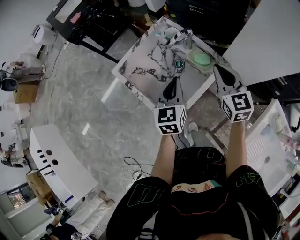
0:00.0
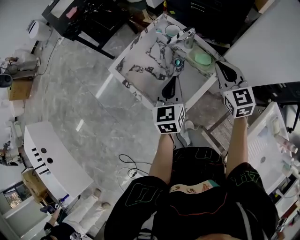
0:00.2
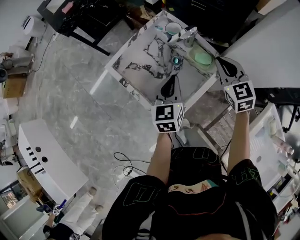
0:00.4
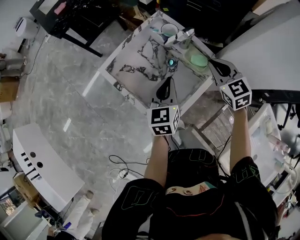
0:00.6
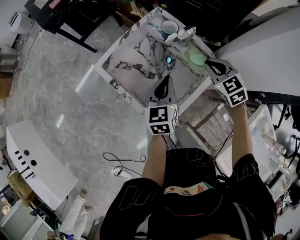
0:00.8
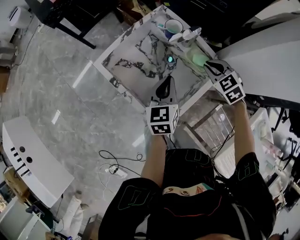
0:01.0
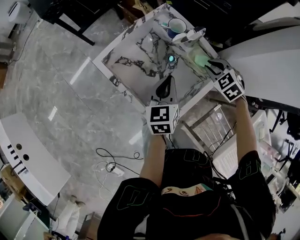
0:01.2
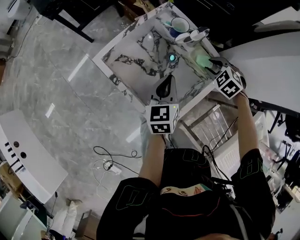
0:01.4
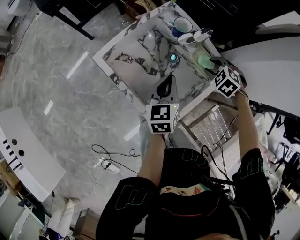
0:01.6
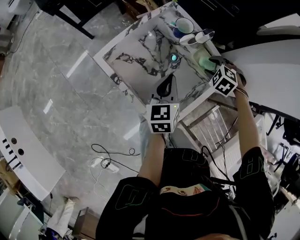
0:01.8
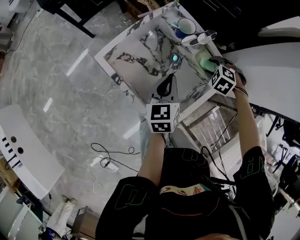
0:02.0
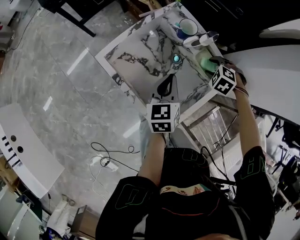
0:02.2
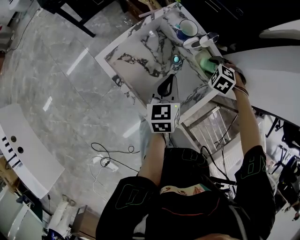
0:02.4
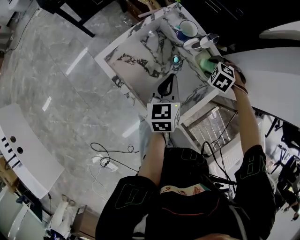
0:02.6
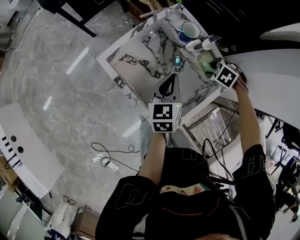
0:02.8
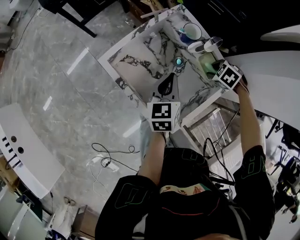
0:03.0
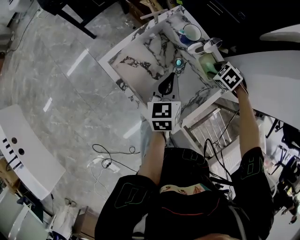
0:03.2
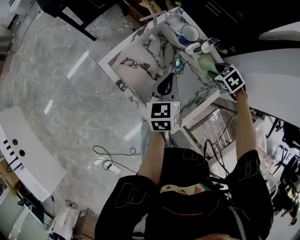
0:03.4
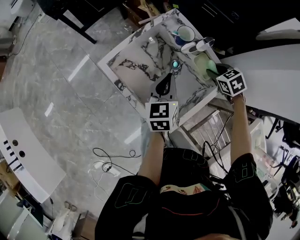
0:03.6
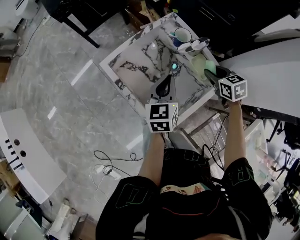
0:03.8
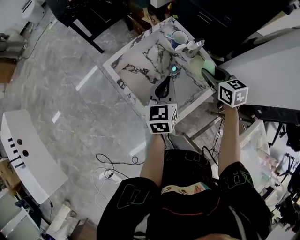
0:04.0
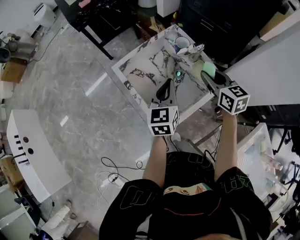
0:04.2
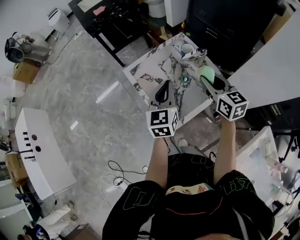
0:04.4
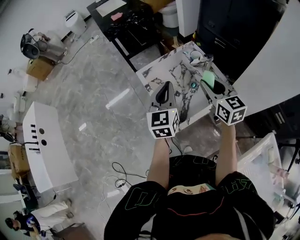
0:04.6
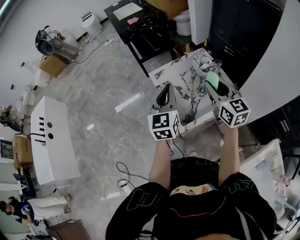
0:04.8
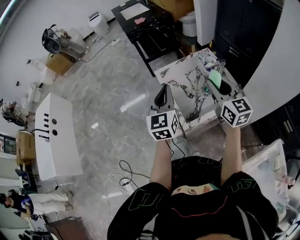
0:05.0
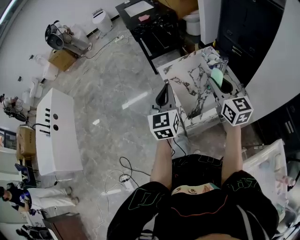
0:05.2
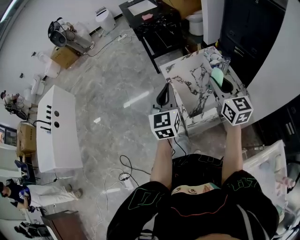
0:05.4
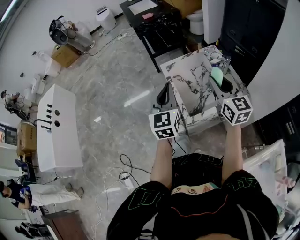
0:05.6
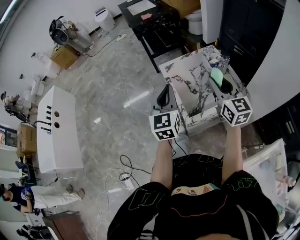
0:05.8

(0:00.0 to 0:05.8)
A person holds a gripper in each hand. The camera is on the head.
0:00.0 - 0:01.4: The right gripper is displaced downward and forward by about 20 cm, angles its fingers downward, by approximately 50 degrees, and opens its fingers. Meanwhile the left gripper is displaced downward by approximately 10 cm.
0:01.4 - 0:02.8: The right gripper shifts about 5 cm downward, and rotates about 20 degrees.
0:02.8 - 0:04.4: The left gripper moves upward, about 15 cm, and rotates approximately 20 degrees, while the right gripper heads upward, covering approximately 25 cm, and tilts its fingers some 70 degrees upward.
0:04.4 - 0:05.8: The left gripper heads to the left, backward and upward, covering about 20 cm, and changes its angle by some 20 degrees, while the right gripper shifts roughly 15 cm to the left, upward and backward.

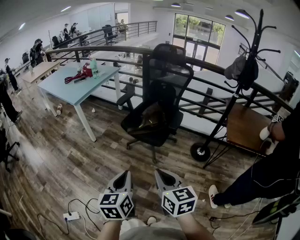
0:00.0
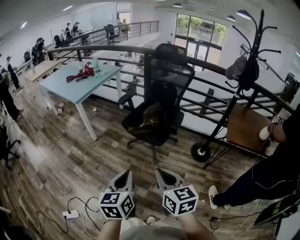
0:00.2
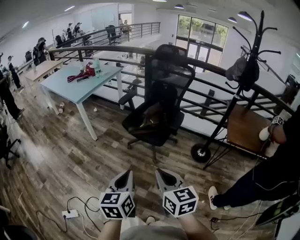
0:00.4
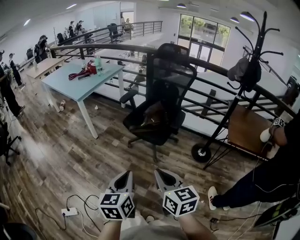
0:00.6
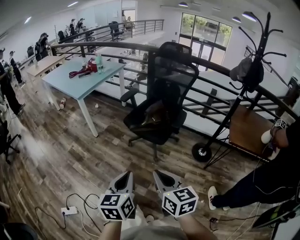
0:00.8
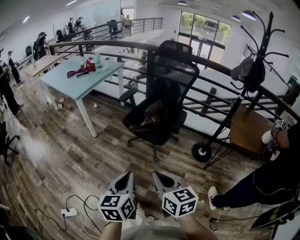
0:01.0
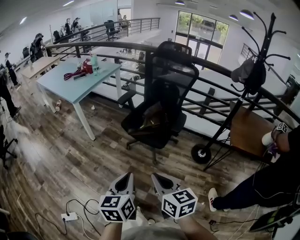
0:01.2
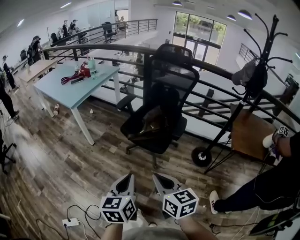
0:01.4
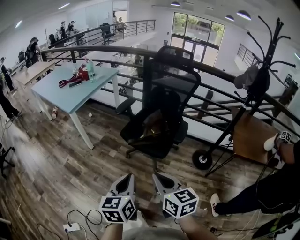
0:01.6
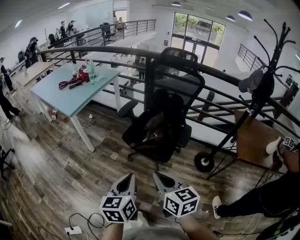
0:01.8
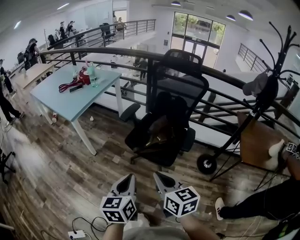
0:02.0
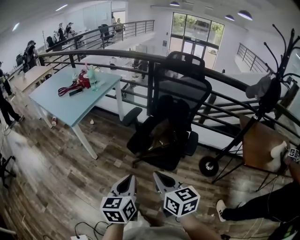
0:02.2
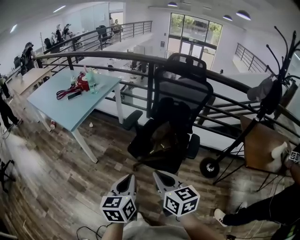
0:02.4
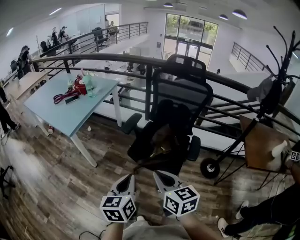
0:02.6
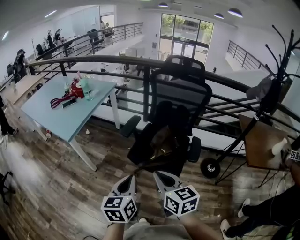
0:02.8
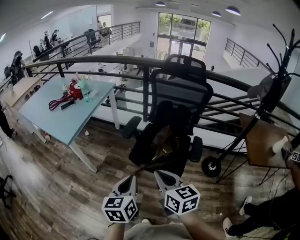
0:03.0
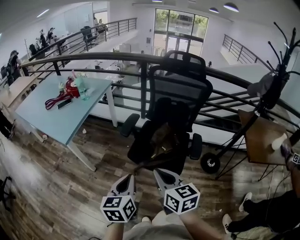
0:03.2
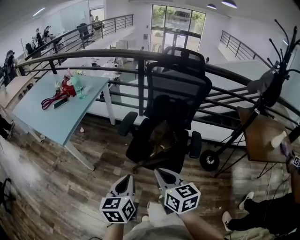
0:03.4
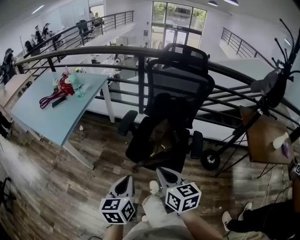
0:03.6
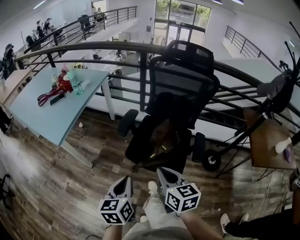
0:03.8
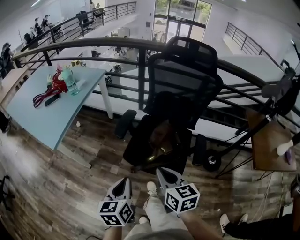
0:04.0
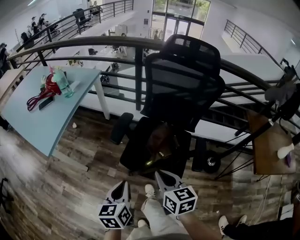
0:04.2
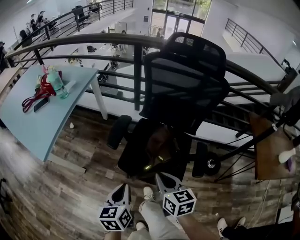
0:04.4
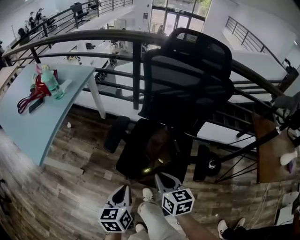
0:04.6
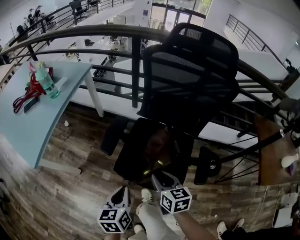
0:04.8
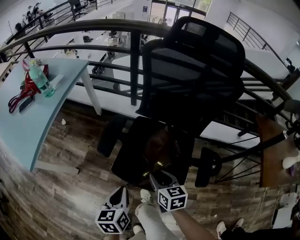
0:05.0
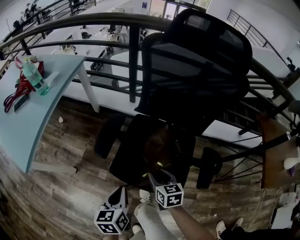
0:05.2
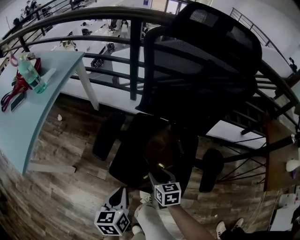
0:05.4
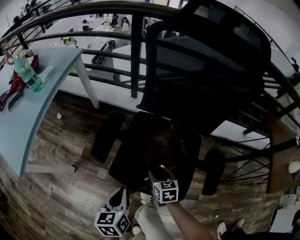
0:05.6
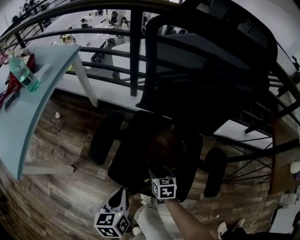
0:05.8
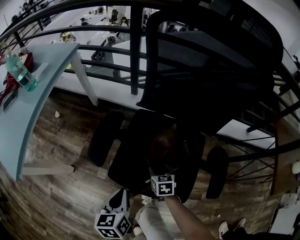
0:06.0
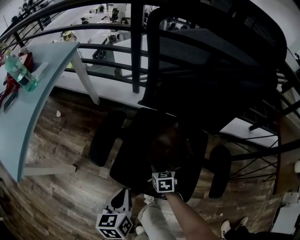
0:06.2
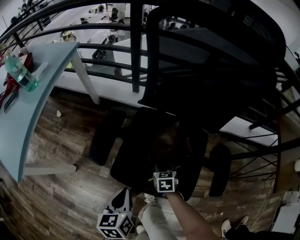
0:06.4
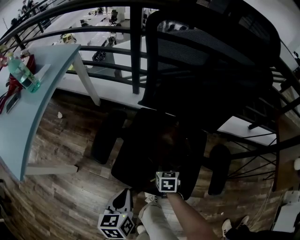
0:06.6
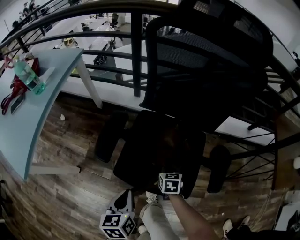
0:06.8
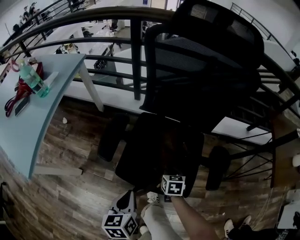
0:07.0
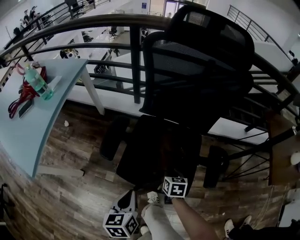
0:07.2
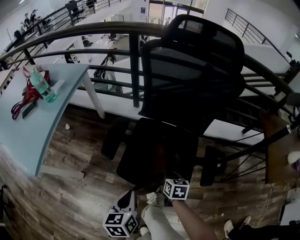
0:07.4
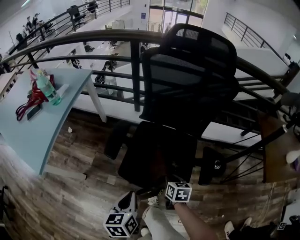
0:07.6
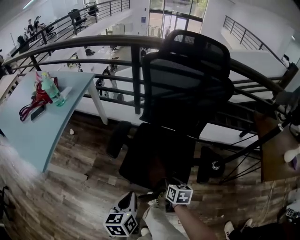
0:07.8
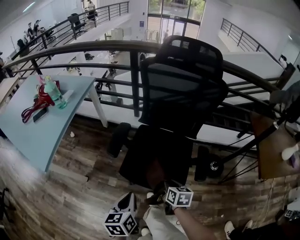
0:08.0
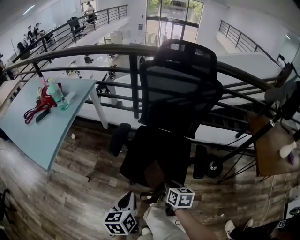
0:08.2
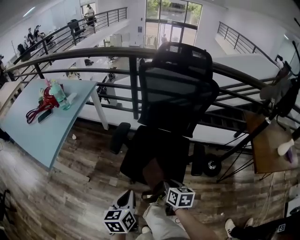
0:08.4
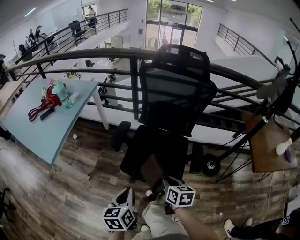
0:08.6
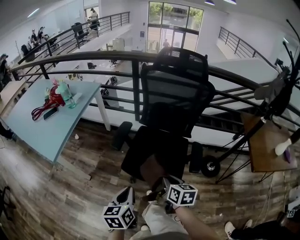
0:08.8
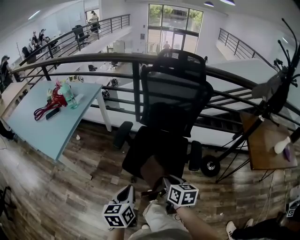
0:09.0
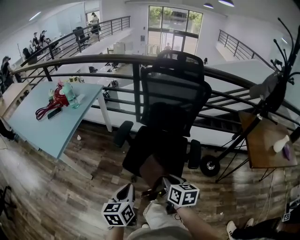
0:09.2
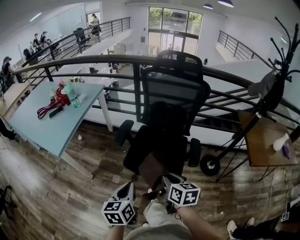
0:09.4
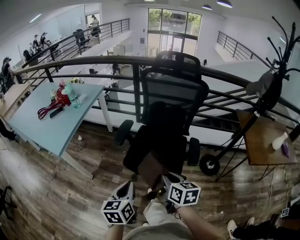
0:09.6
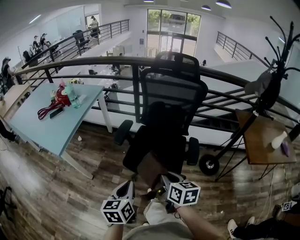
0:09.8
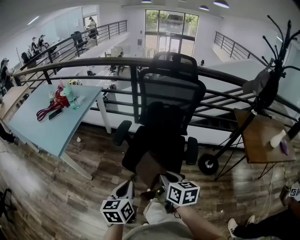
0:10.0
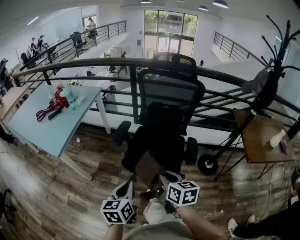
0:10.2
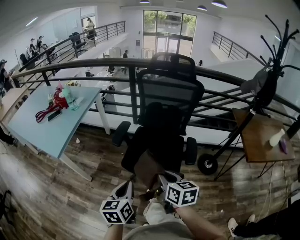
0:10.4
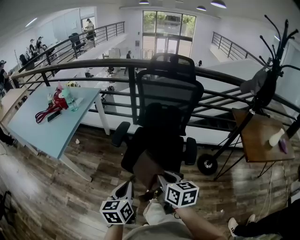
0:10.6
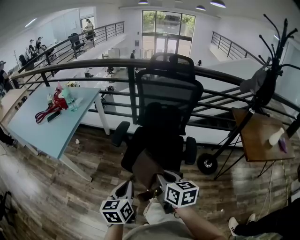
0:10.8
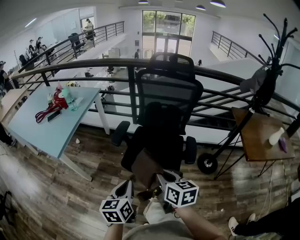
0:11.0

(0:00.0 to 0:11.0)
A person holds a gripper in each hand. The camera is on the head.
0:00.0 - 0:01.6: Both grippers move forward, roughly 15 cm.
0:01.6 - 0:03.2: Both grippers travel together forward and to the left, approximately 25 cm.
0:03.2 - 0:04.8: The two grippers go about 30 cm forward and downward.
0:04.8 - 0:06.2: The right gripper moves downward and forward, about 30 cm, turns by approximately 20 degrees, and opens up, while the left gripper shifts some 15 cm downward and forward.
0:06.2 - 0:07.8: The two grippers go roughly 20 cm upward and backward. The right gripper rotates roughly 20 degrees, and closes its fingers.
0:07.8 - 0:09.4: The right gripper moves upward and backward, approximately 25 cm, while the left gripper shifts about 15 cm backward and upward.
0:09.4 - 0:11.0: The right gripper is displaced upward by about 5 cm.

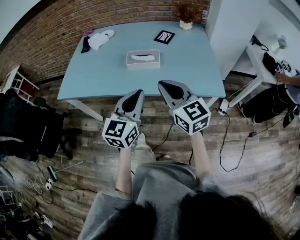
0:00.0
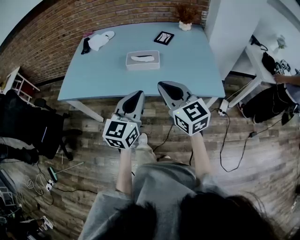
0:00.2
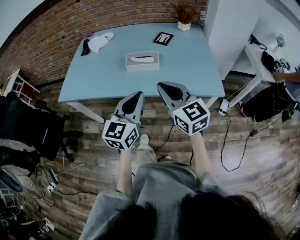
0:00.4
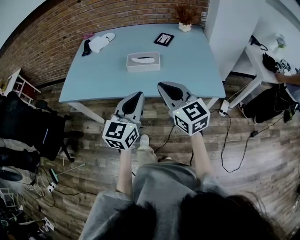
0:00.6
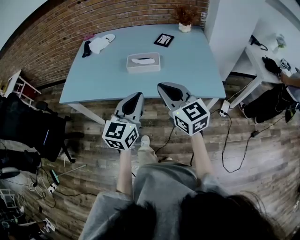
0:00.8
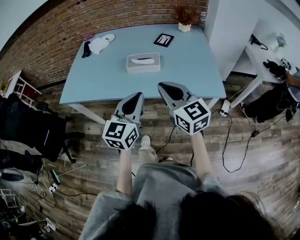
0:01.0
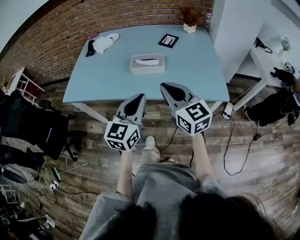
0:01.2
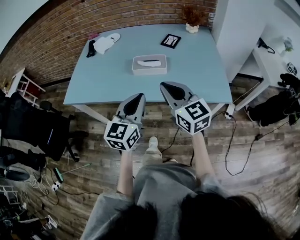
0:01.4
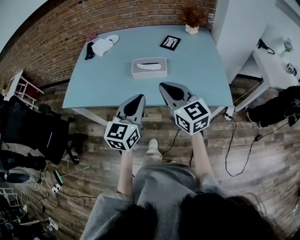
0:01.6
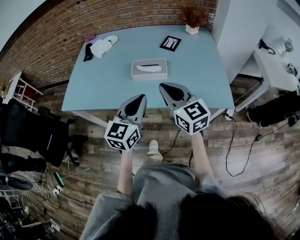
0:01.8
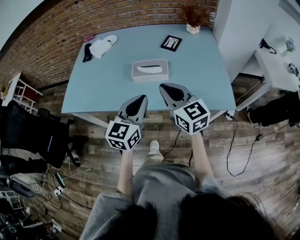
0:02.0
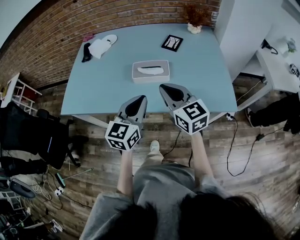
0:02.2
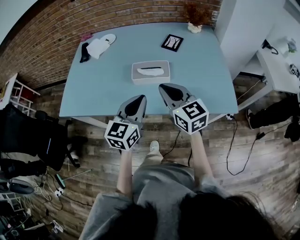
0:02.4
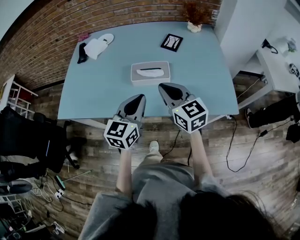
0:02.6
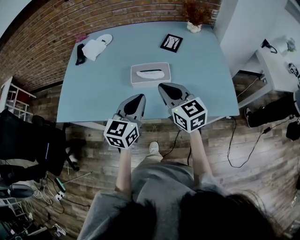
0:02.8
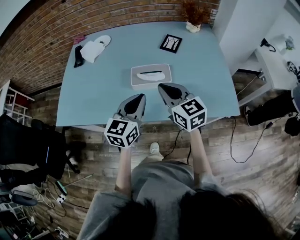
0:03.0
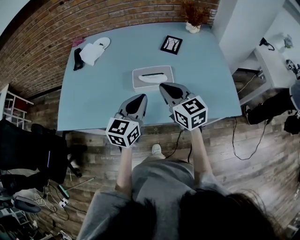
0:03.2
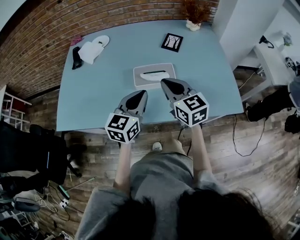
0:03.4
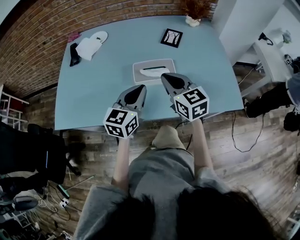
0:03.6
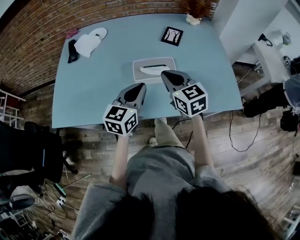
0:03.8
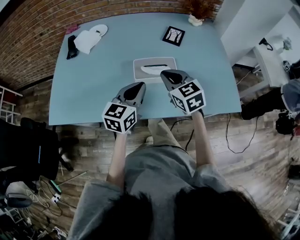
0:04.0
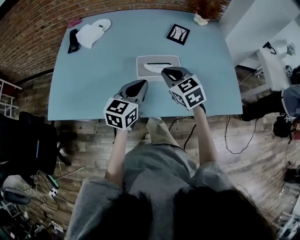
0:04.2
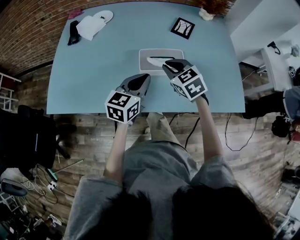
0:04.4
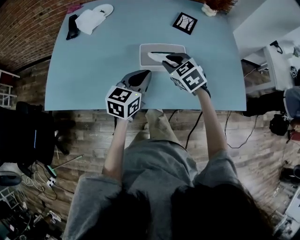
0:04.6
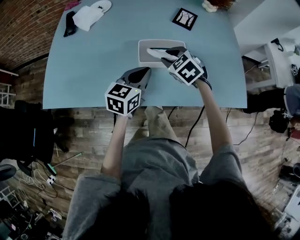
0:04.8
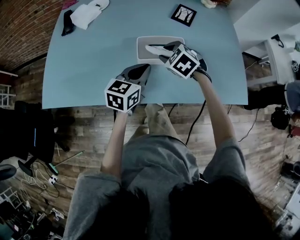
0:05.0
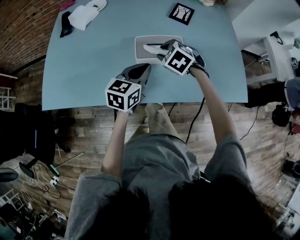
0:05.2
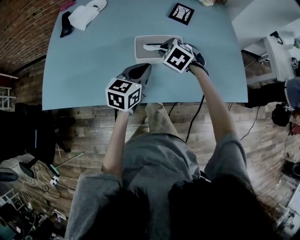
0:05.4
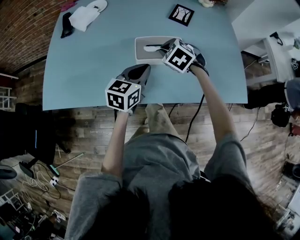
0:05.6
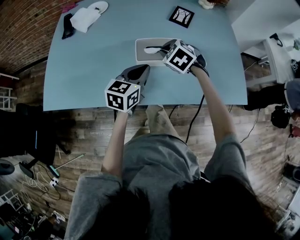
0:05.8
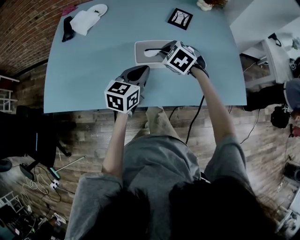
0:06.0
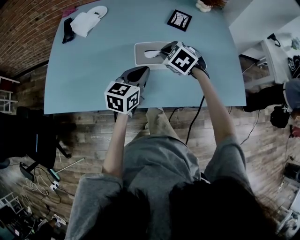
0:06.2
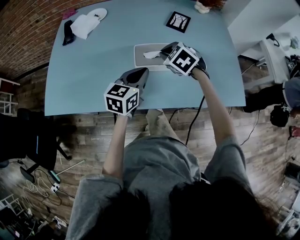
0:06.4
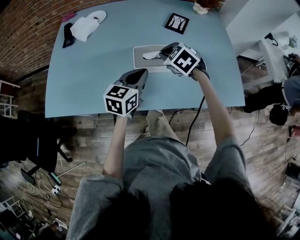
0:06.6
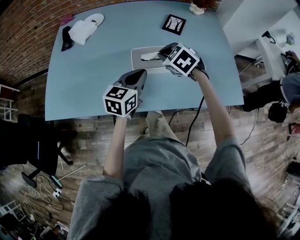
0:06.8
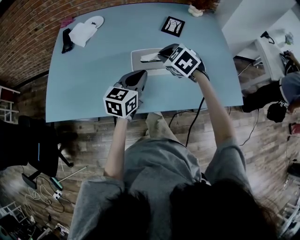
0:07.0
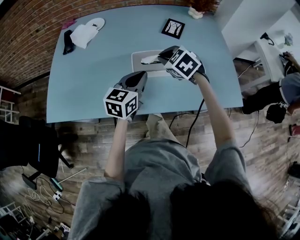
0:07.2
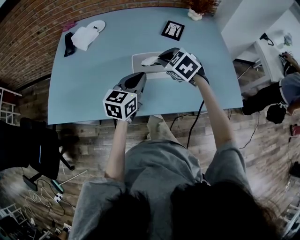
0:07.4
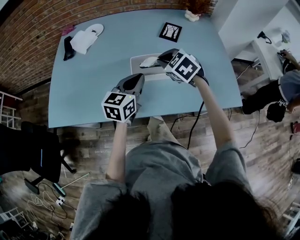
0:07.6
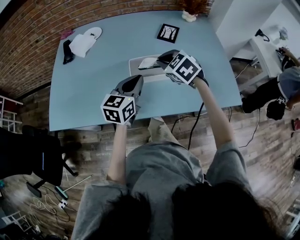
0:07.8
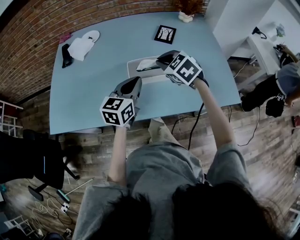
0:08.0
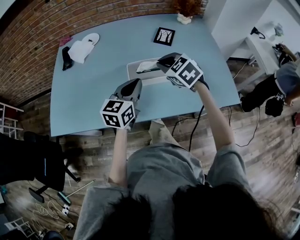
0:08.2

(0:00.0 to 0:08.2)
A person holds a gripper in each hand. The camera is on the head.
0:00.0 - 0:01.6: The two grippers go some 5 cm forward.
0:01.6 - 0:03.2: The right gripper is displaced forward and downward by about 15 cm. The left gripper goes about 15 cm forward.
0:03.2 - 0:05.0: The right gripper shifts roughly 20 cm downward and forward, tips its fingers downward by about 40 degrees, and opens; the left gripper travels downward and forward by some 10 cm.
0:05.0 - 0:06.6: The right gripper closes its fingers.
0:06.6 - 0:08.2: The right gripper travels upward by approximately 5 cm.
